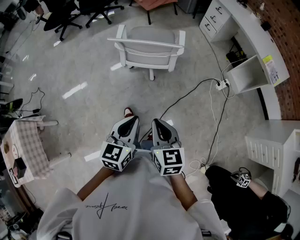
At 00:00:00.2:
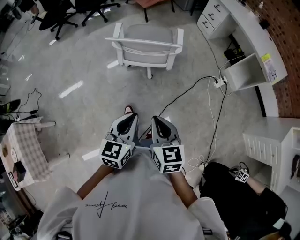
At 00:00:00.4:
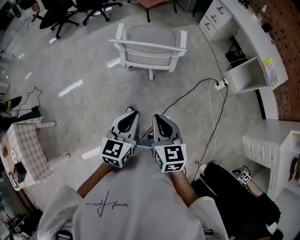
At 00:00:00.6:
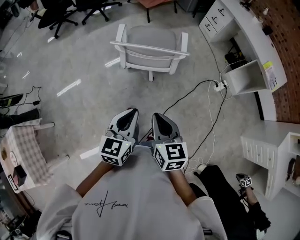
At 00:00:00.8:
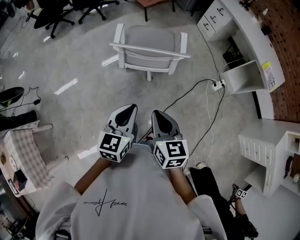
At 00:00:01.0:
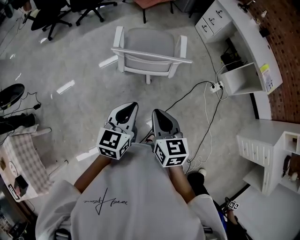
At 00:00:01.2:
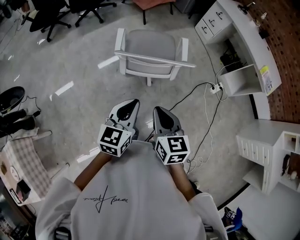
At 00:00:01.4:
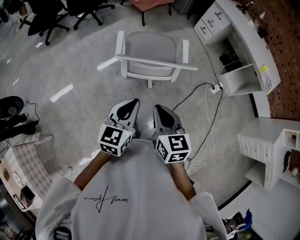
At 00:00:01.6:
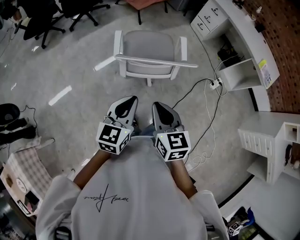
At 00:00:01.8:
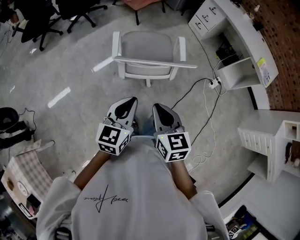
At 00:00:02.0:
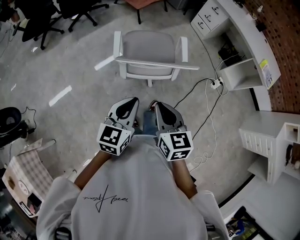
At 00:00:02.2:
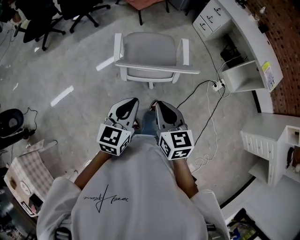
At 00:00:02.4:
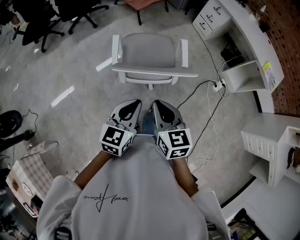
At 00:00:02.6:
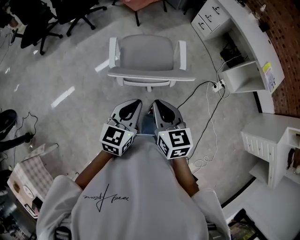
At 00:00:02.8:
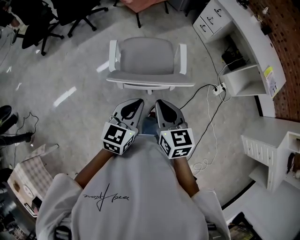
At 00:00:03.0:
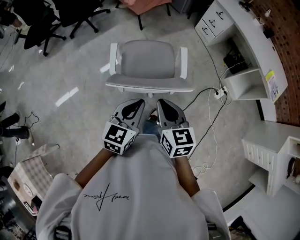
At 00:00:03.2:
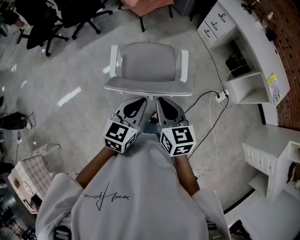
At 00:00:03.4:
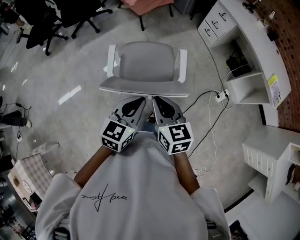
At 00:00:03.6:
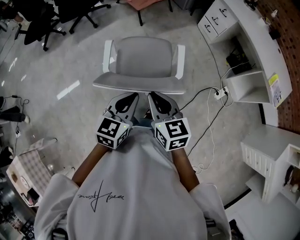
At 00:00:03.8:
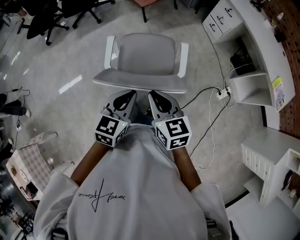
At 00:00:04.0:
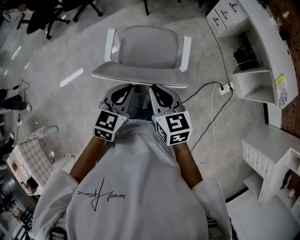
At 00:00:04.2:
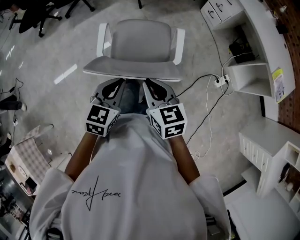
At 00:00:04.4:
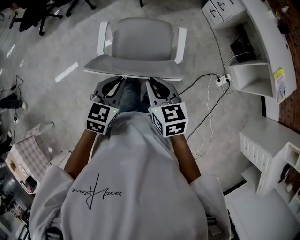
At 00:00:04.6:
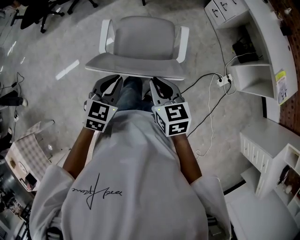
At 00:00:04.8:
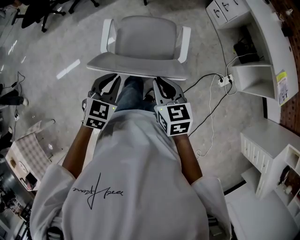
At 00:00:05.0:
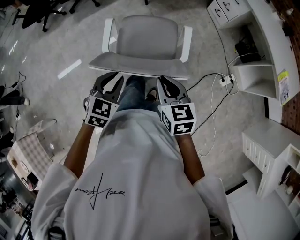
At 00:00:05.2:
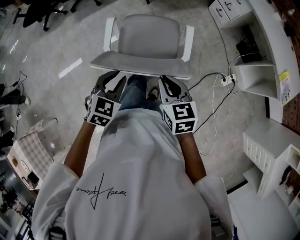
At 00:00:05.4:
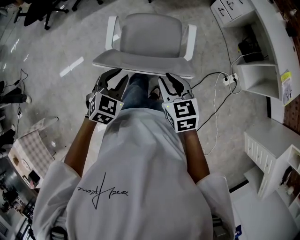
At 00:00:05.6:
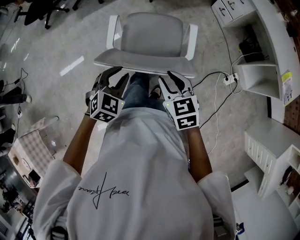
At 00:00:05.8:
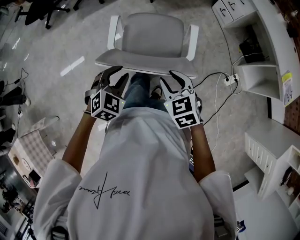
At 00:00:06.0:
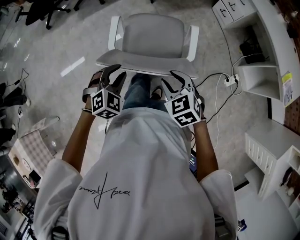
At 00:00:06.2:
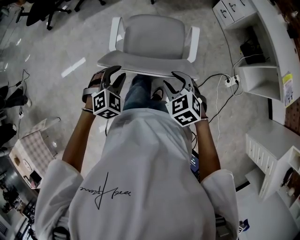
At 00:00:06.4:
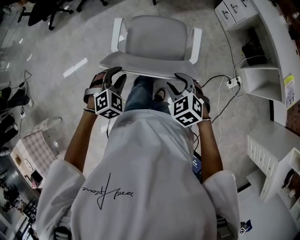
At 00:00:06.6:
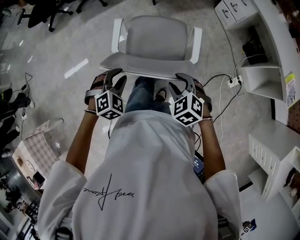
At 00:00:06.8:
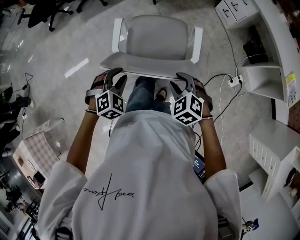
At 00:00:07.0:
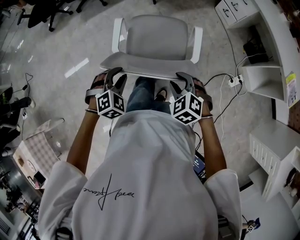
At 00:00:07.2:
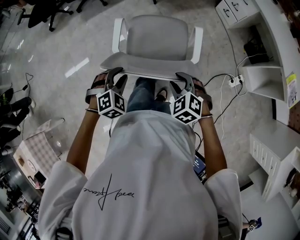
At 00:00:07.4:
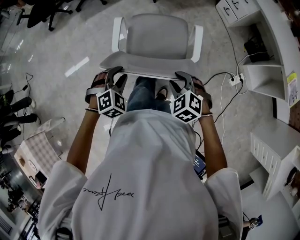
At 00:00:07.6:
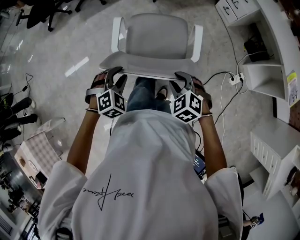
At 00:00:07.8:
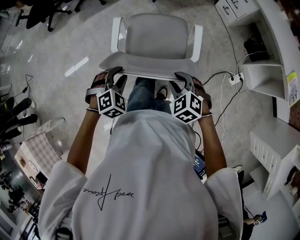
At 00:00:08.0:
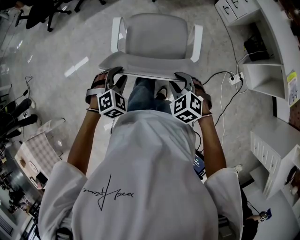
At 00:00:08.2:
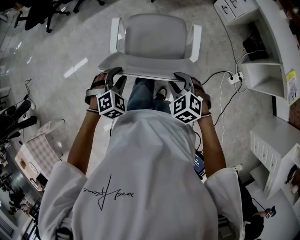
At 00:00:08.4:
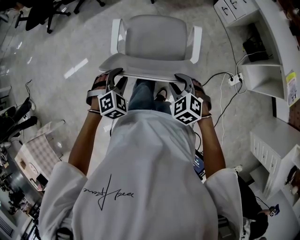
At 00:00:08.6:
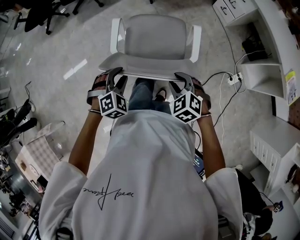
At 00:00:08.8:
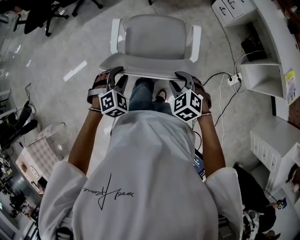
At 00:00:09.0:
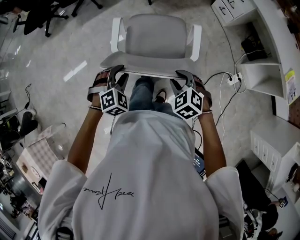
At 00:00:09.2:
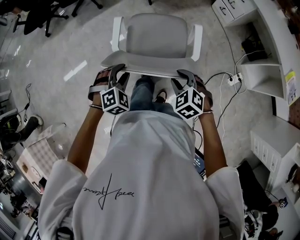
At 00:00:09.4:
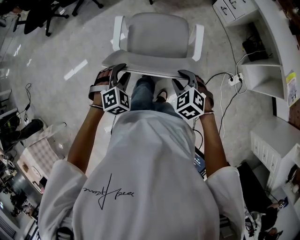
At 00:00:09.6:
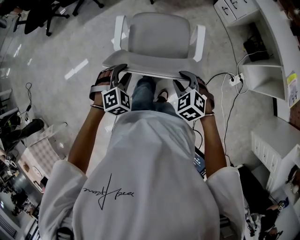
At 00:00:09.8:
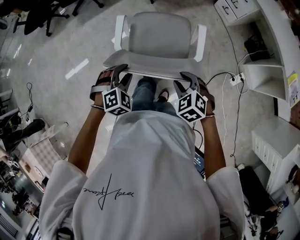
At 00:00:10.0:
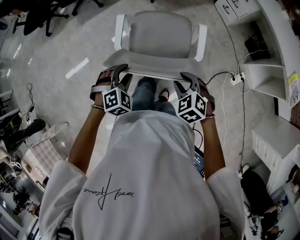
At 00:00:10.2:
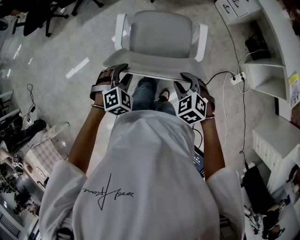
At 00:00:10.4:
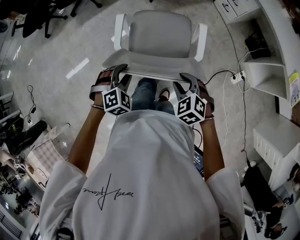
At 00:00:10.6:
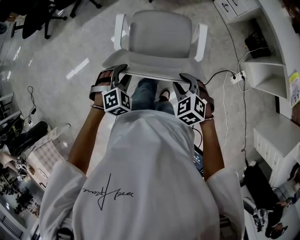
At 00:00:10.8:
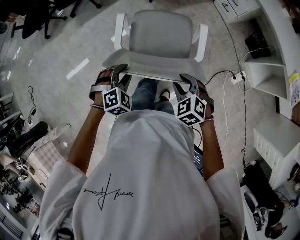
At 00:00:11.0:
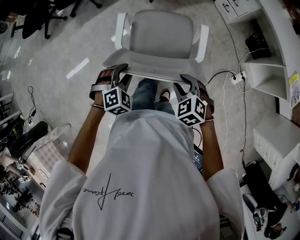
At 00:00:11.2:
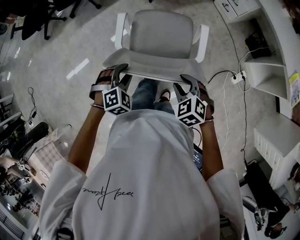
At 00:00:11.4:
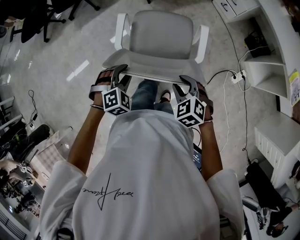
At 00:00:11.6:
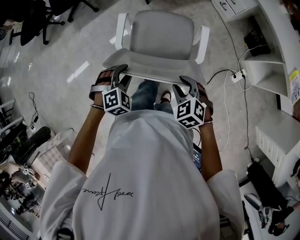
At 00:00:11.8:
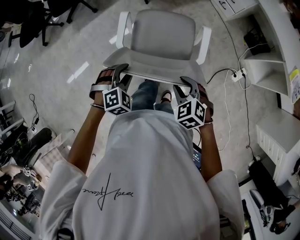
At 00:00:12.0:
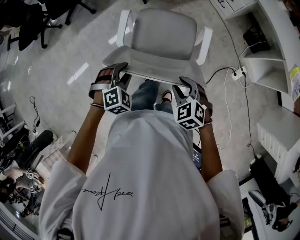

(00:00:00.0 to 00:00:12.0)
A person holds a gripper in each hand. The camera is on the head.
00:00:00.0 - 00:00:01.6: The grippers both shift forward and to the left by roughly 25 cm.
00:00:01.6 - 00:00:03.0: The right gripper goes roughly 15 cm forward. The left gripper shifts about 15 cm forward and to the right.
00:00:03.0 - 00:00:04.4: Both grippers travel together downward, approximately 5 cm.
00:00:04.4 - 00:00:06.0: The left gripper moves to the left, about 5 cm, swivels some 40 degrees, and opens up; the right gripper is displaced downward by about 5 cm, swivels about 30 degrees, and opens its fingers.
00:00:06.0 - 00:00:07.6: The right gripper moves downward, approximately 5 cm.
00:00:07.6 - 00:00:09.0: There are only small adjustments of the grippers.
00:00:09.0 - 00:00:10.4: The grippers move only a little.
00:00:10.4 - 00:00:12.0: The left gripper goes roughly 5 cm forward.

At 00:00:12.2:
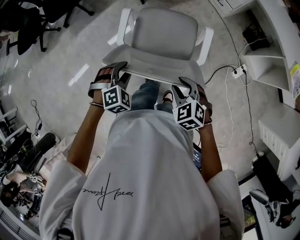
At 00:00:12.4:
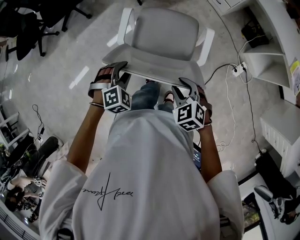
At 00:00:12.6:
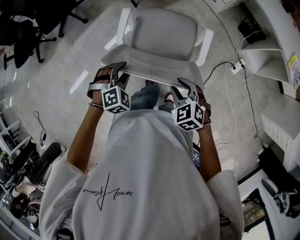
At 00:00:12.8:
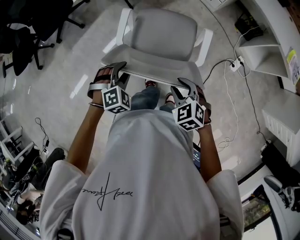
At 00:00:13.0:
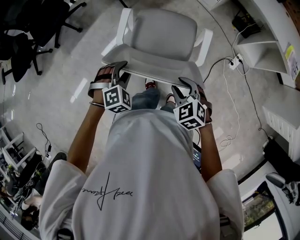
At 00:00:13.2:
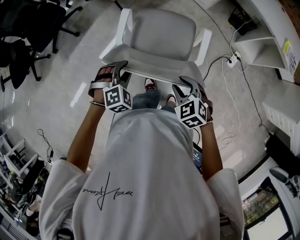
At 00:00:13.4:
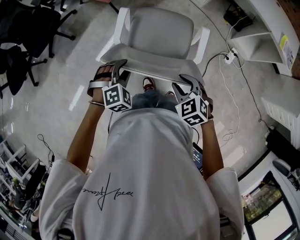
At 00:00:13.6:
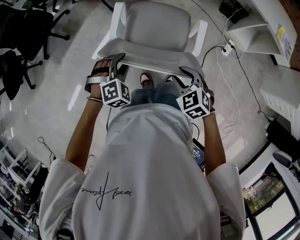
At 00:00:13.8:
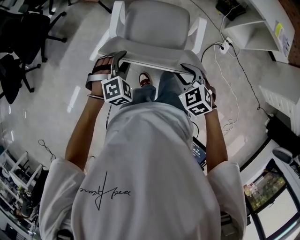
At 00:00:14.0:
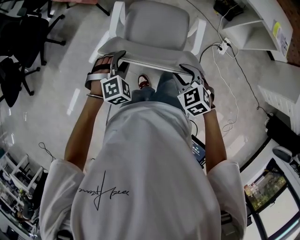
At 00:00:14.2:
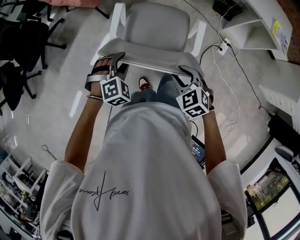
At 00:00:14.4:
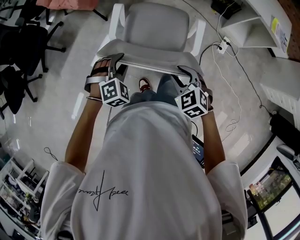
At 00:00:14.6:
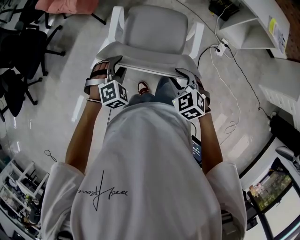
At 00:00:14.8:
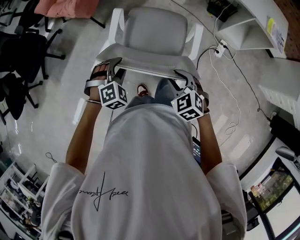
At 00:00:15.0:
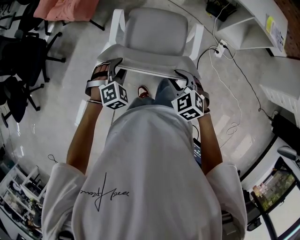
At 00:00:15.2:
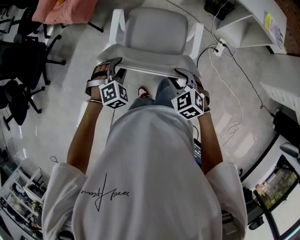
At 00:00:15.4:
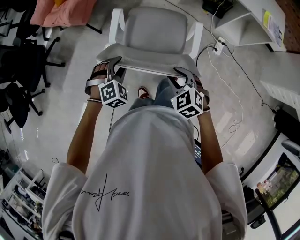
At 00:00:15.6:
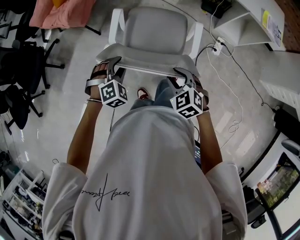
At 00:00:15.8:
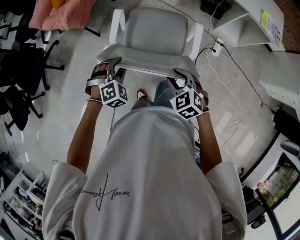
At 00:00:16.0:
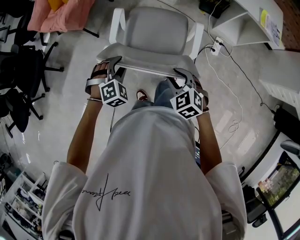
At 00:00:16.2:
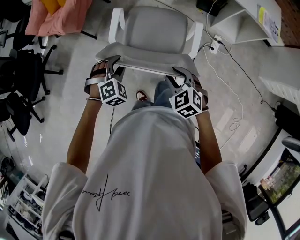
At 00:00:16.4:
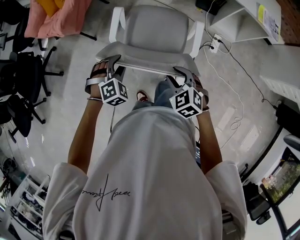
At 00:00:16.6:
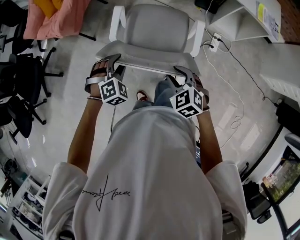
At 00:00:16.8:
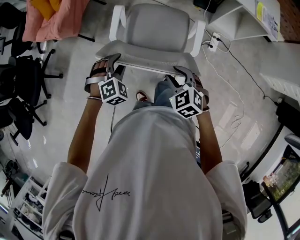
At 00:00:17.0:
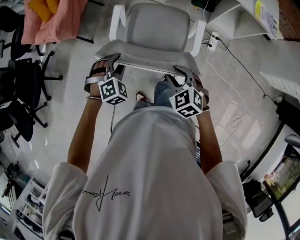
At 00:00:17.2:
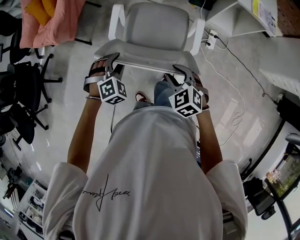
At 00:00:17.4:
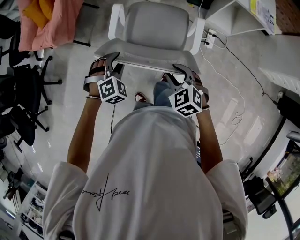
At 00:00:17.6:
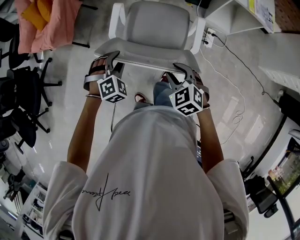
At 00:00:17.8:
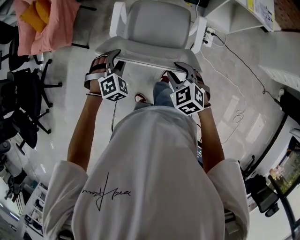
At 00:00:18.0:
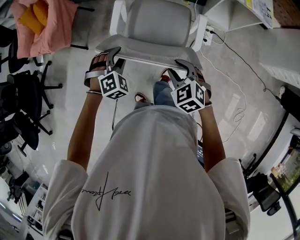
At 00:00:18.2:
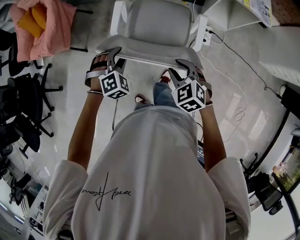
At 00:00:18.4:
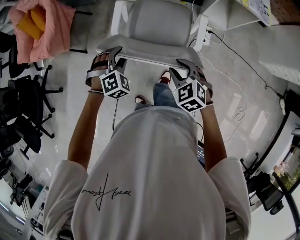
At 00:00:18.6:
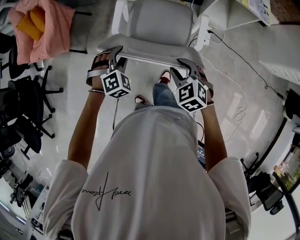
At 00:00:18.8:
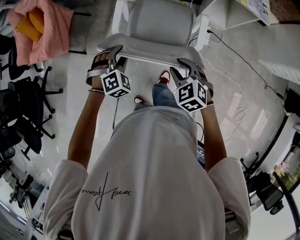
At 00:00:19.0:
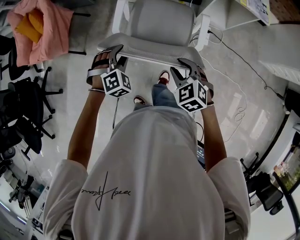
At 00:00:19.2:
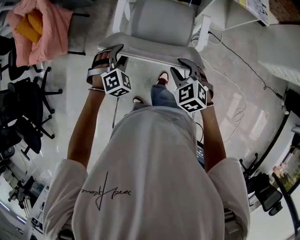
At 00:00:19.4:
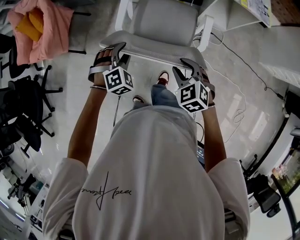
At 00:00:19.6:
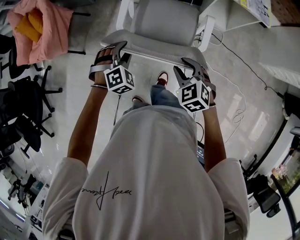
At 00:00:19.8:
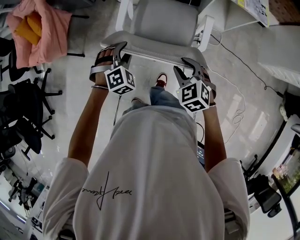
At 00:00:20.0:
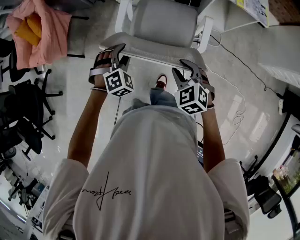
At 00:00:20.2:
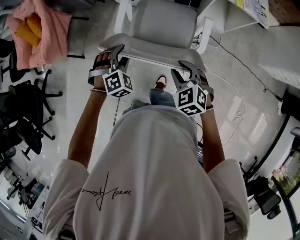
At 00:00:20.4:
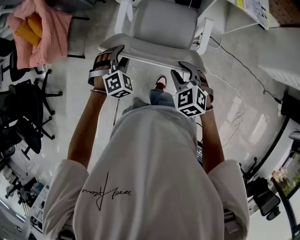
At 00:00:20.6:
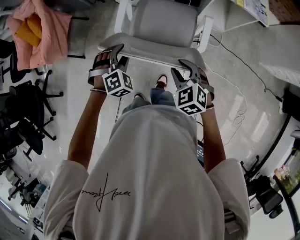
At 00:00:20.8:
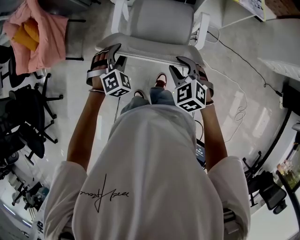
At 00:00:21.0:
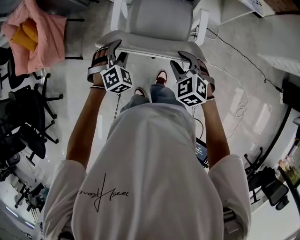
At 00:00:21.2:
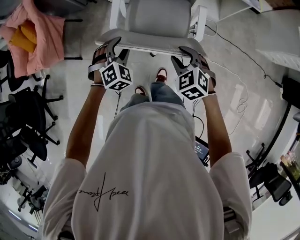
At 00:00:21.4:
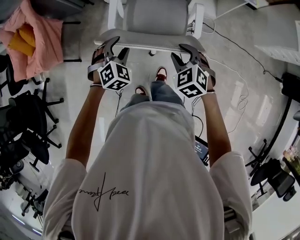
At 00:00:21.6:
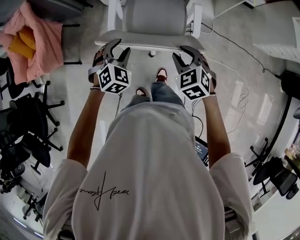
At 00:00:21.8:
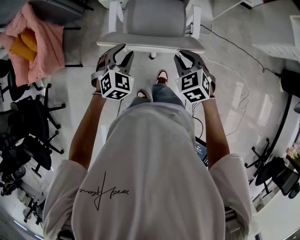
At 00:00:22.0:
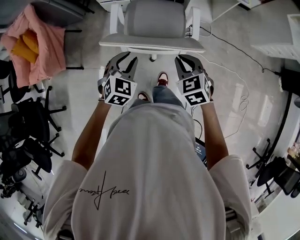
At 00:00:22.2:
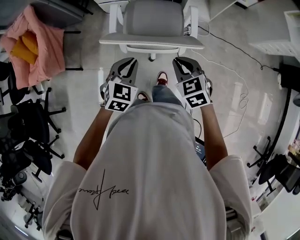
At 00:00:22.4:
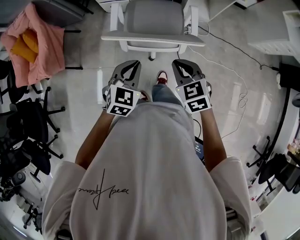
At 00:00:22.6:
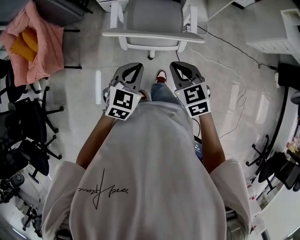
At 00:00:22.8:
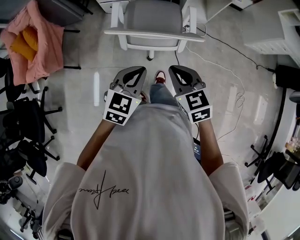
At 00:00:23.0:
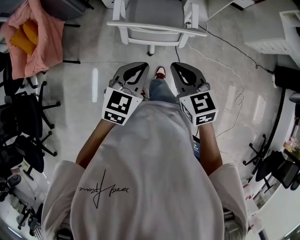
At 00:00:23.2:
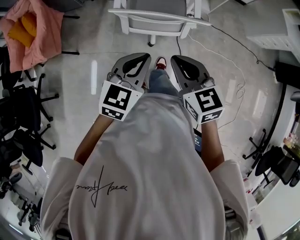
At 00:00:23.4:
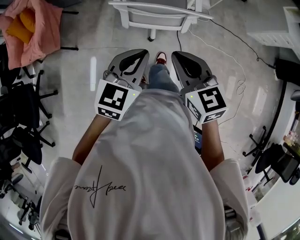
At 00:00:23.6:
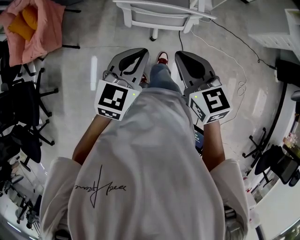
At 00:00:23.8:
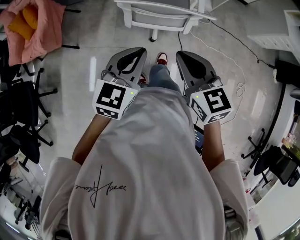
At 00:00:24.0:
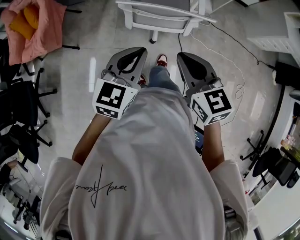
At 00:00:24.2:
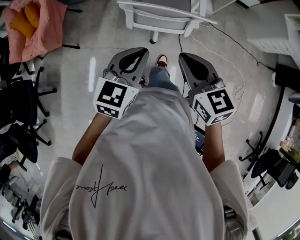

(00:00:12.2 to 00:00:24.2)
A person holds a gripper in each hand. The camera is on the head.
00:00:12.2 - 00:00:13.8: The right gripper is displaced forward by about 5 cm. Meanwhile the left gripper travels forward and to the right by some 15 cm.
00:00:13.8 - 00:00:15.2: The right gripper goes about 10 cm to the right and forward; the left gripper travels forward and to the right by about 10 cm.
00:00:15.2 - 00:00:16.6: The left gripper travels to the right and forward by about 10 cm. The right gripper is displaced to the right by approximately 5 cm.
00:00:16.6 - 00:00:18.2: The left gripper travels to the right and forward by approximately 15 cm. The right gripper moves to the right, some 10 cm.
00:00:18.2 - 00:00:19.8: The two grippers go roughly 10 cm to the right.
00:00:19.8 - 00:00:21.2: There are only small adjustments of the grippers.
00:00:21.2 - 00:00:22.6: The left gripper heads backward and upward, covering approximately 20 cm, changes its angle by roughly 40 degrees, and closes. Meanwhile the right gripper travels backward, upward and to the left by roughly 15 cm, changes its angle by some 20 degrees, and closes its fingers.
00:00:22.6 - 00:00:24.2: The two grippers go some 10 cm backward and upward.
